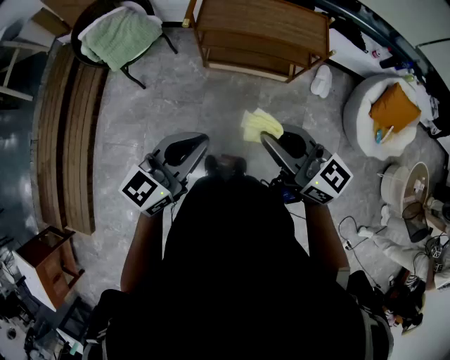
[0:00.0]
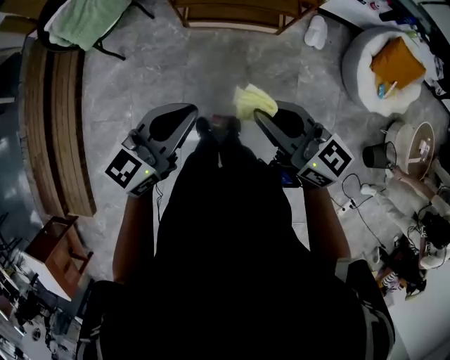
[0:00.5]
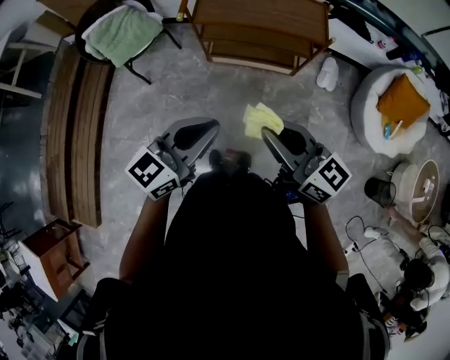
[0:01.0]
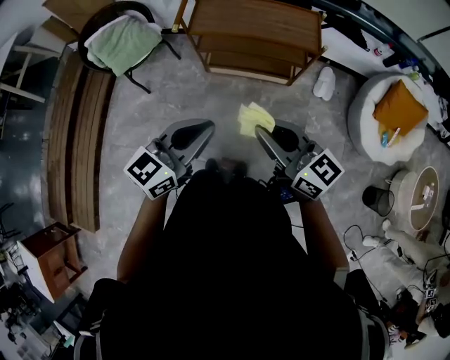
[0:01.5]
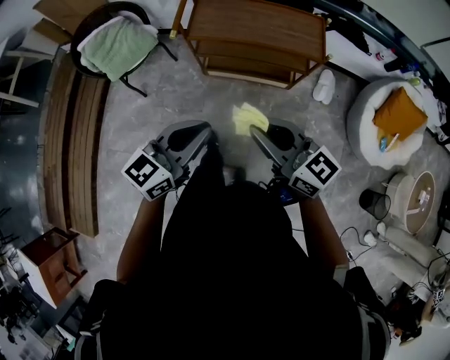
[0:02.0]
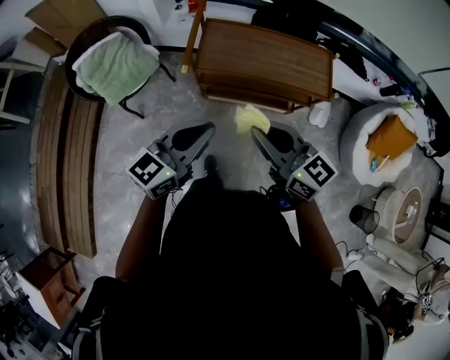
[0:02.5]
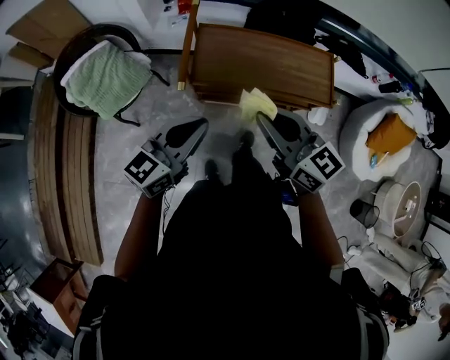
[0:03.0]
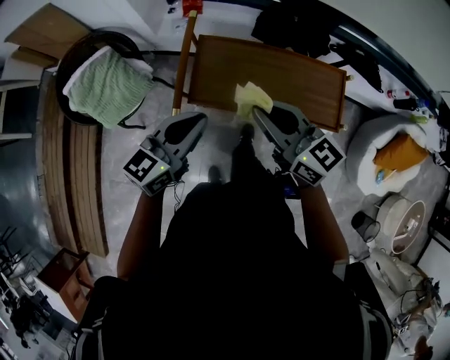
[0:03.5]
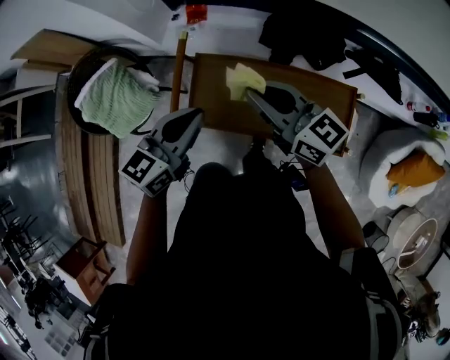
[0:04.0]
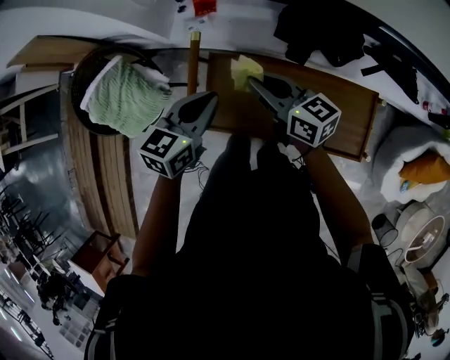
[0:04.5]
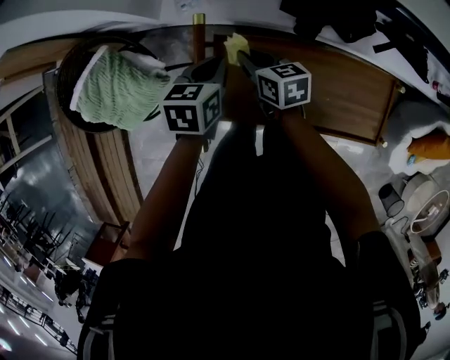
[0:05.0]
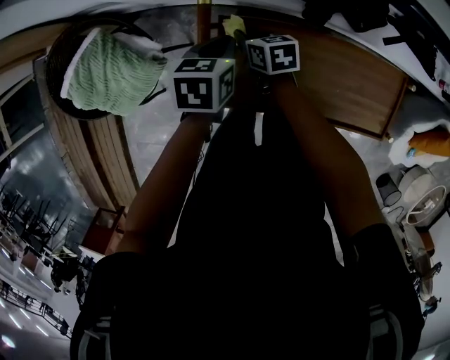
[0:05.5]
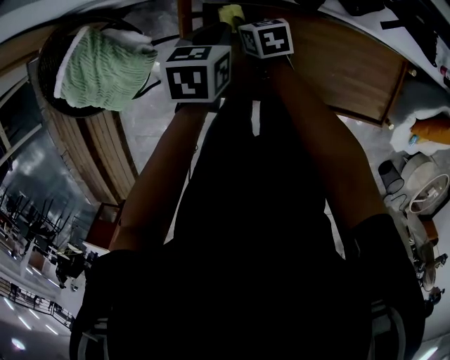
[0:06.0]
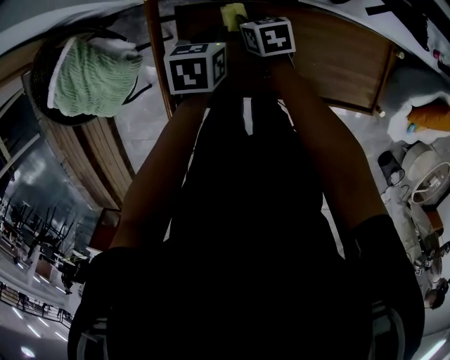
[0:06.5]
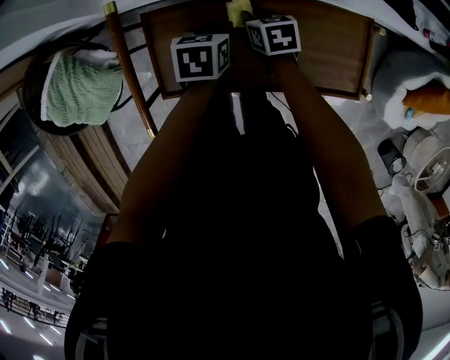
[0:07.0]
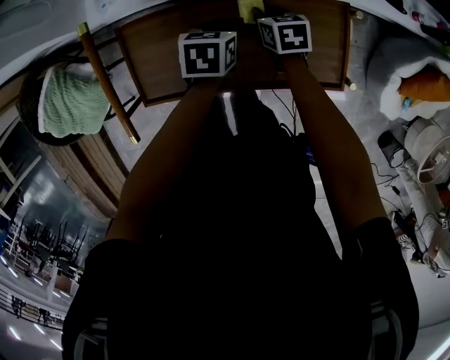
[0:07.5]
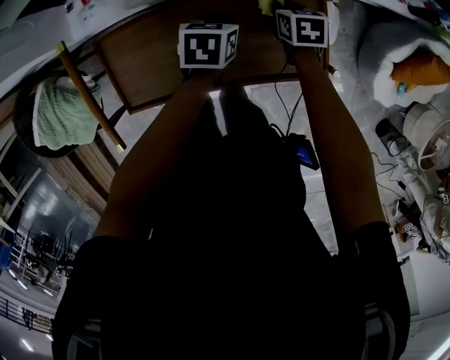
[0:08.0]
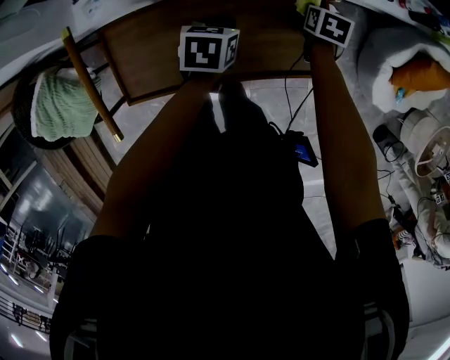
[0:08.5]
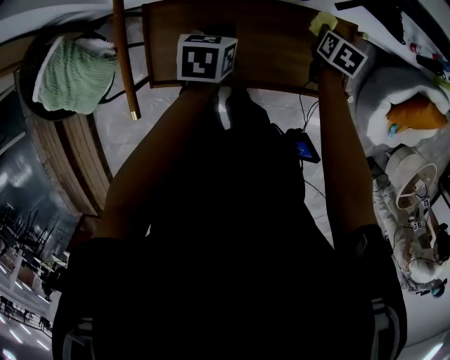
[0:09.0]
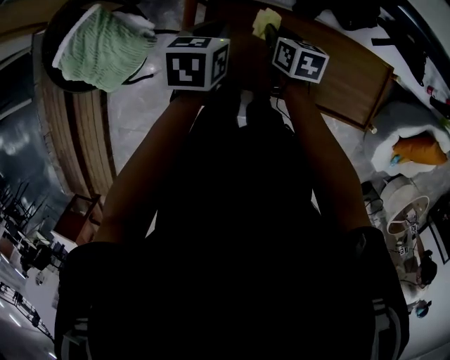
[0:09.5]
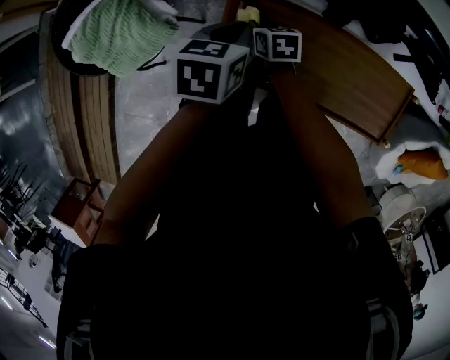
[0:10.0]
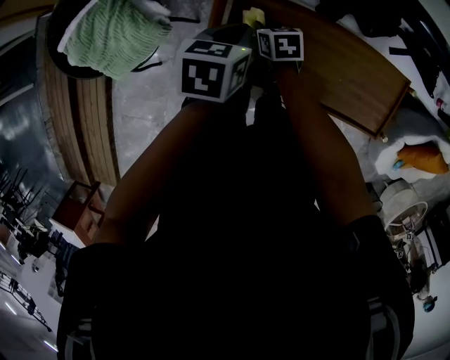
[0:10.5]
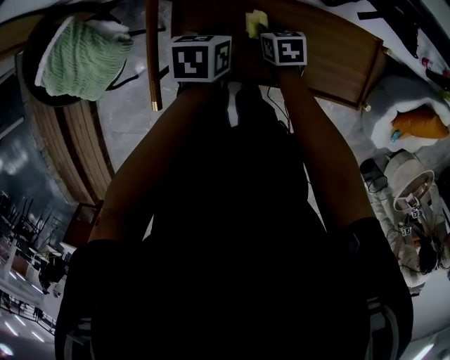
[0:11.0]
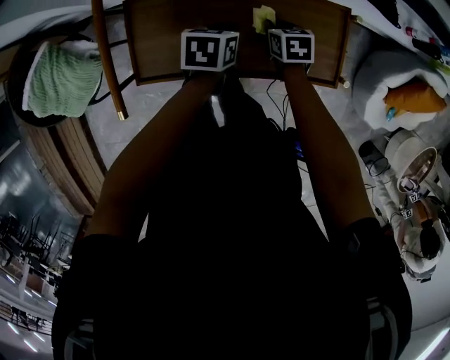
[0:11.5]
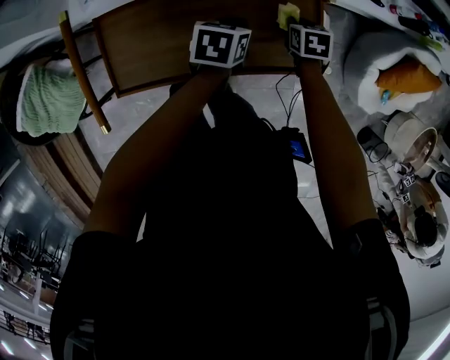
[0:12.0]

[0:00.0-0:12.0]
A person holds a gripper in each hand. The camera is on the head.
0:00.0 to 0:02.0: Both grippers move forward and to the right, some 10 cm.
0:02.0 to 0:04.0: The two grippers travel together, forward, about 50 cm.
0:04.0 to 0:06.0: Both grippers move downward and forward, some 30 cm. The left gripper points its fingers some 40 degrees further downward. The right gripper tips its fingers downward by some 50 degrees.
0:06.0 to 0:08.0: The left gripper shifts by roughly 30 cm. The right gripper changes place by some 40 cm, and rotates about 30 degrees.
0:08.0 to 0:10.0: The right gripper shifts by roughly 50 cm, and rotates about 30 degrees; the left gripper shifts by some 40 cm, and swivels some 20 degrees.
0:10.0 to 0:12.0: The left gripper shifts by about 40 cm, and swivels some 20 degrees. Meanwhile the right gripper ends up roughly 50 cm from where it was, and changes its angle by approximately 30 degrees.

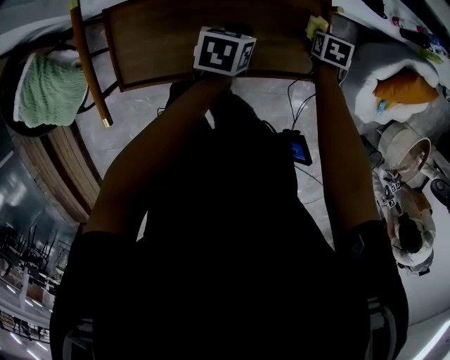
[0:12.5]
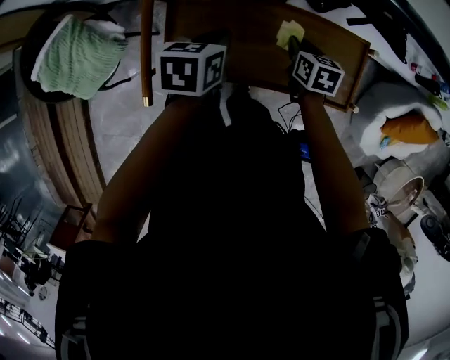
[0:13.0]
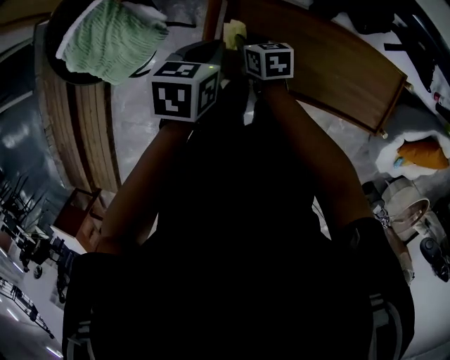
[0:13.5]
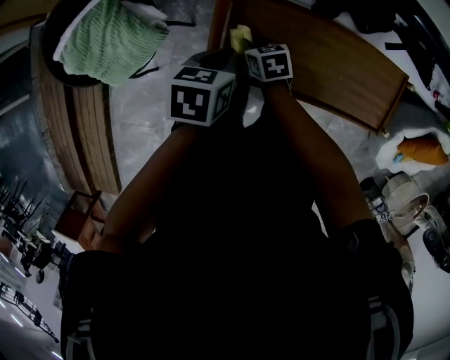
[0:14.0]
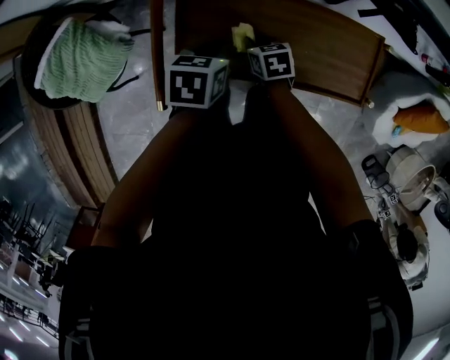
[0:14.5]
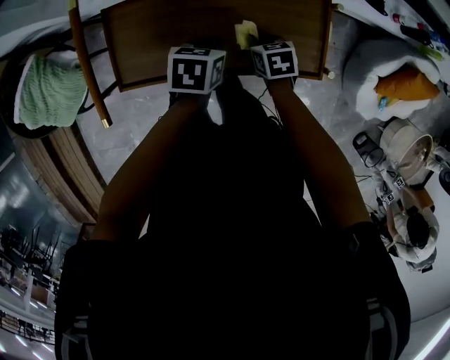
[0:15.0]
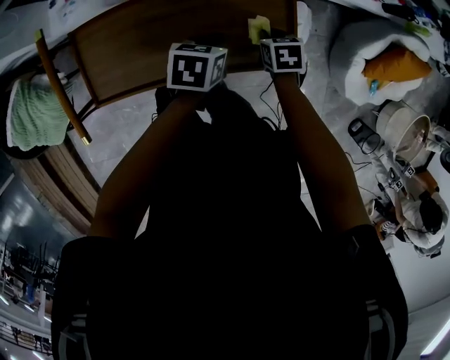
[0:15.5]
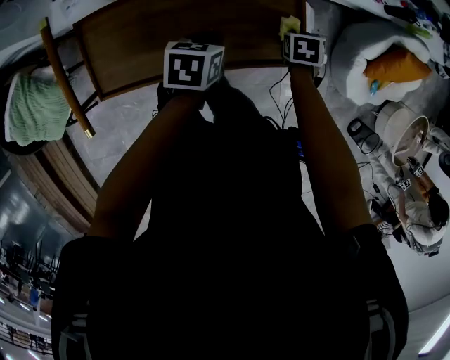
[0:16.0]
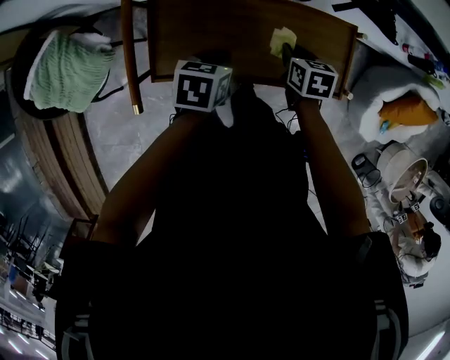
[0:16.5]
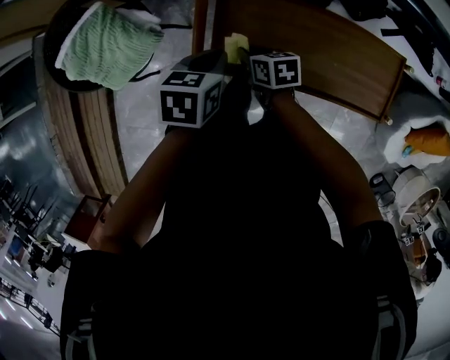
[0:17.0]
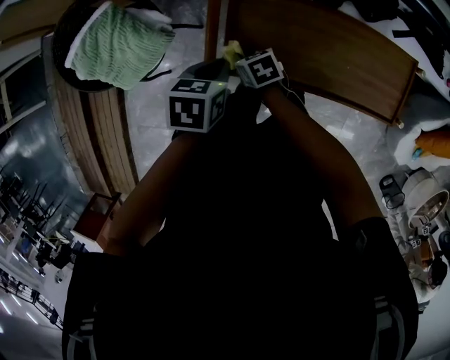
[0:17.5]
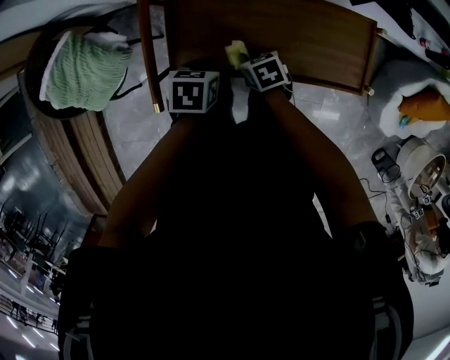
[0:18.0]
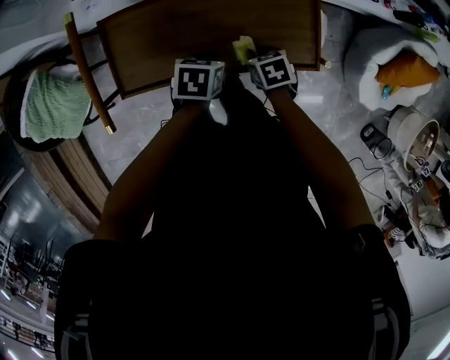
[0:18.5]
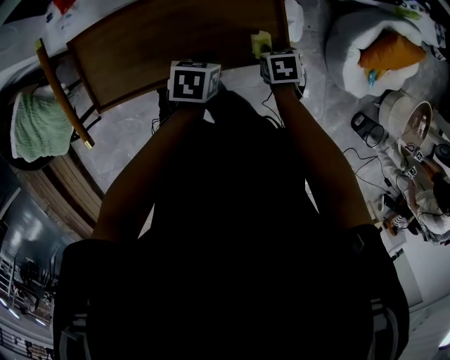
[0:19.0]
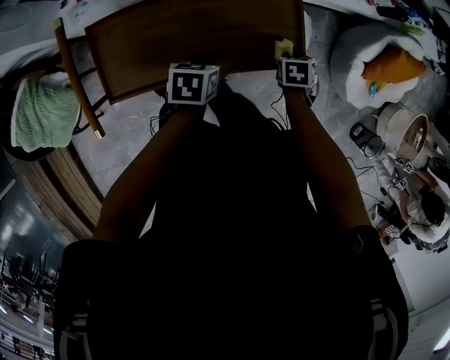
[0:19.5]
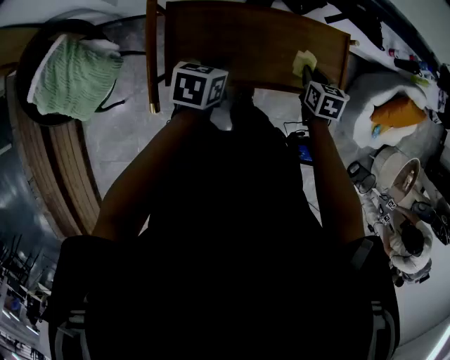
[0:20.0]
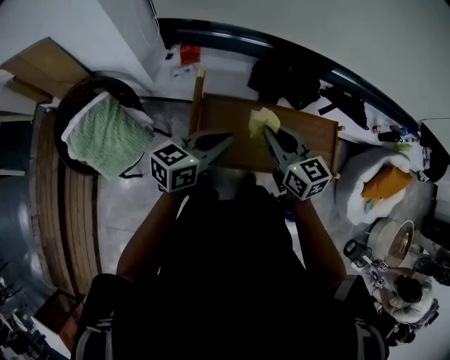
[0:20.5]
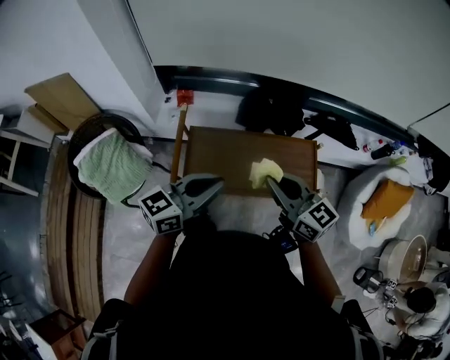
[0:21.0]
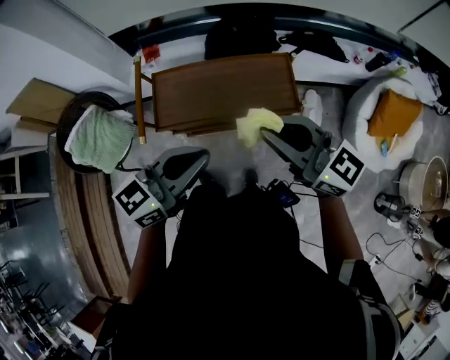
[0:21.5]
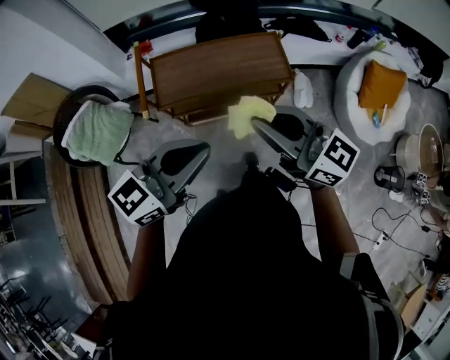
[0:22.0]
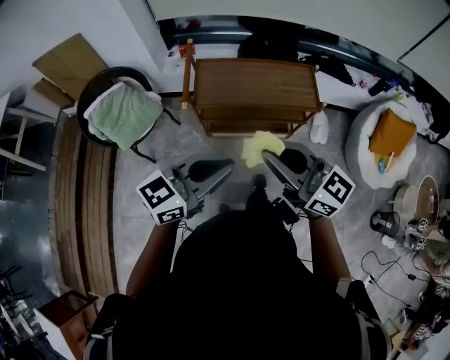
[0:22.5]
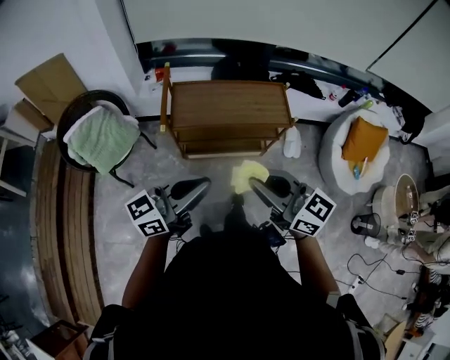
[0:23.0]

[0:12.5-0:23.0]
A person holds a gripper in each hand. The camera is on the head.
0:12.5 to 0:14.5: The left gripper ends up approximately 25 cm from where it was; the right gripper changes place by some 40 cm, and rotates roughly 40 degrees.
0:16.5 to 0:19.0: The left gripper shifts by some 20 cm.
0:19.0 to 0:21.0: The two grippers go roughly 35 cm upward. The right gripper points its fingers about 60 degrees further upward. The left gripper tilts its fingers about 50 degrees upward.
0:21.0 to 0:23.0: Both grippers travel together backward, roughly 35 cm.

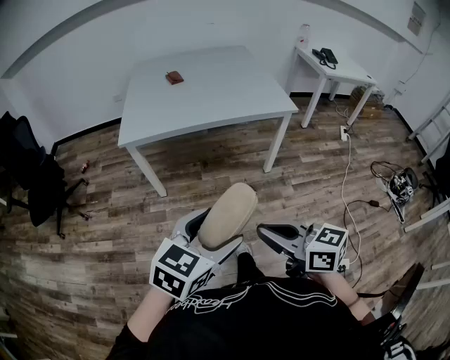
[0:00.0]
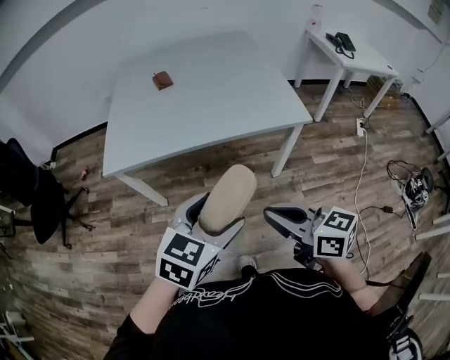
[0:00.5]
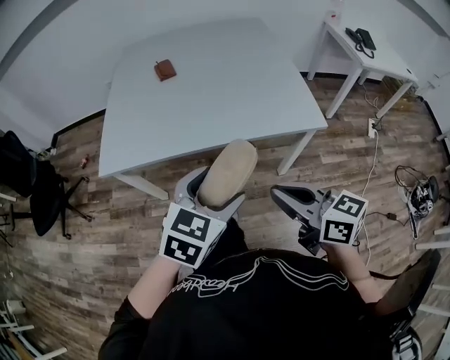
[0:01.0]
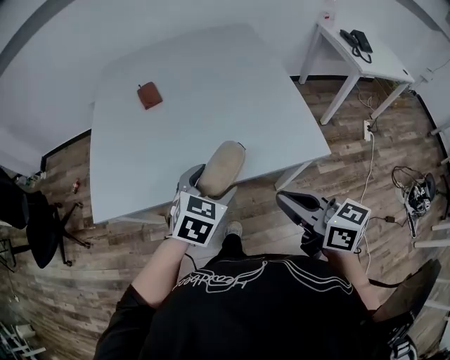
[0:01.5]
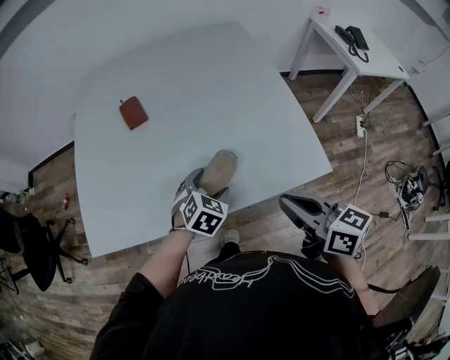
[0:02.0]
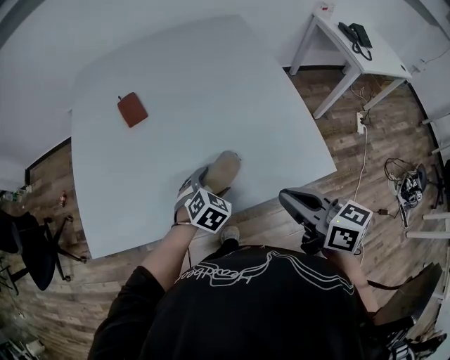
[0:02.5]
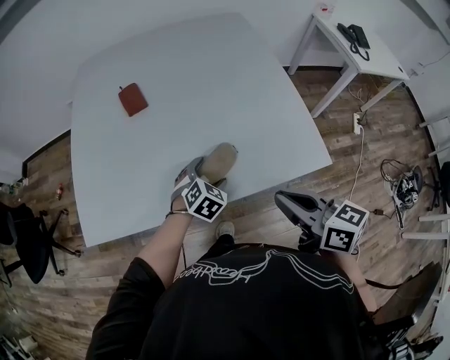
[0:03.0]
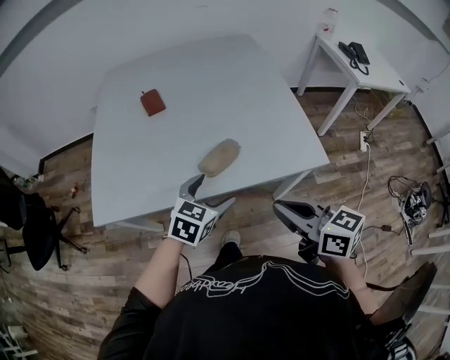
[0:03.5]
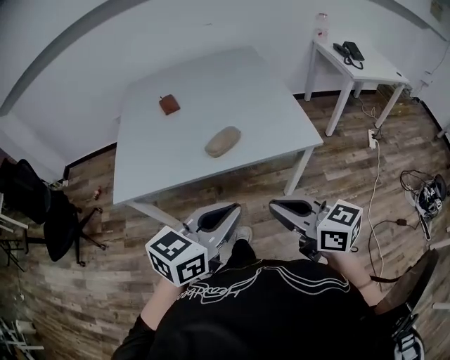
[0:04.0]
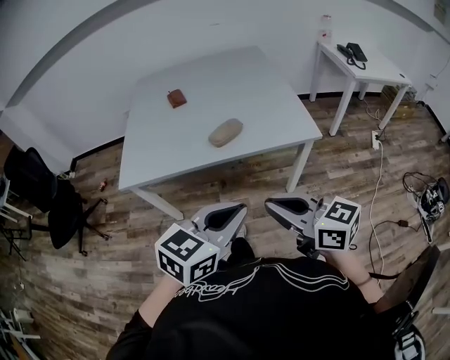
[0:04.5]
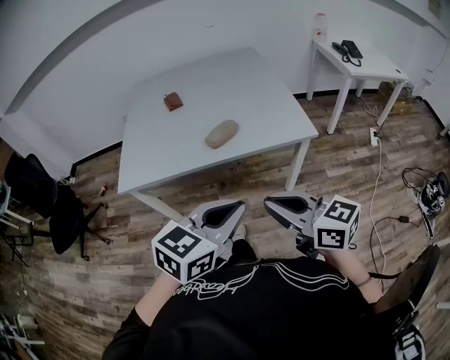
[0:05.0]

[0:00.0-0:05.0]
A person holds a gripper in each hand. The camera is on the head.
0:00.0 to 0:02.5: The two grippers travel together, forward, about 70 cm. The left gripper rotates approximately 30 degrees.
0:02.5 to 0:05.0: The right gripper is displaced backward by some 30 cm, and changes its angle by some 20 degrees. Meanwhile the left gripper moves backward and upward, roughly 50 cm, angles its fingers upward, by some 30 degrees, and closes.
